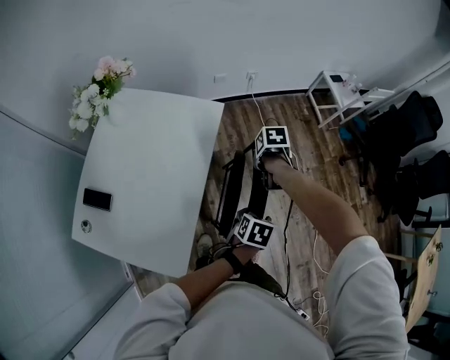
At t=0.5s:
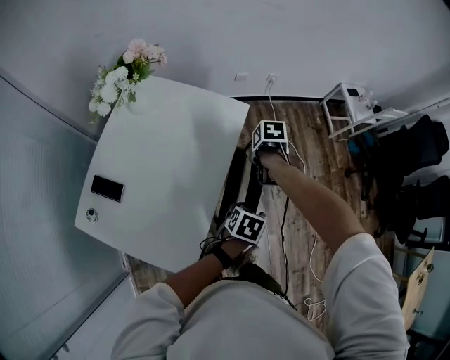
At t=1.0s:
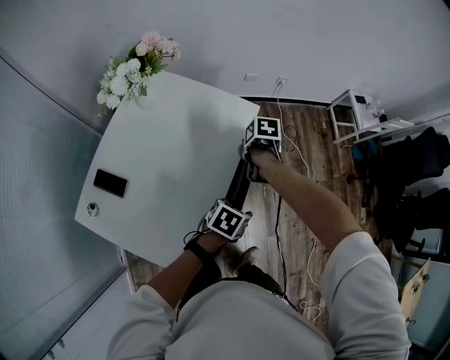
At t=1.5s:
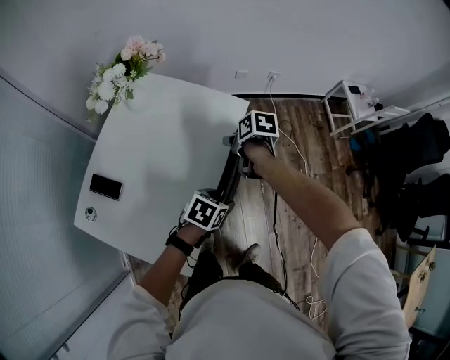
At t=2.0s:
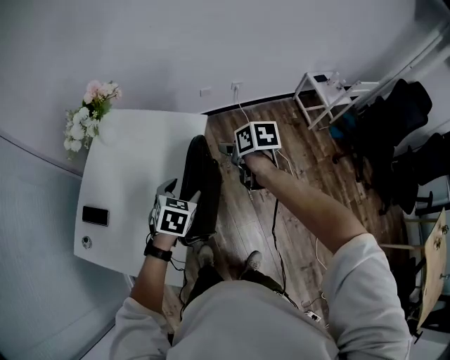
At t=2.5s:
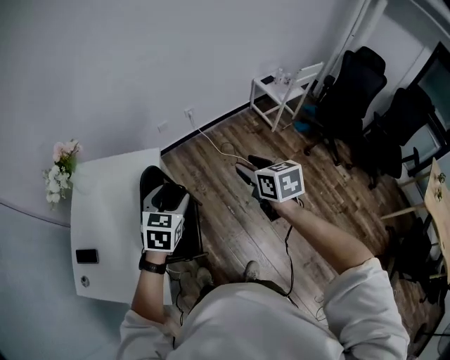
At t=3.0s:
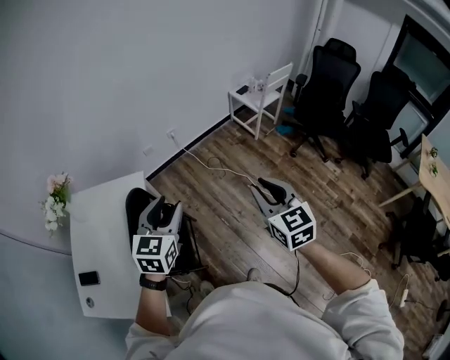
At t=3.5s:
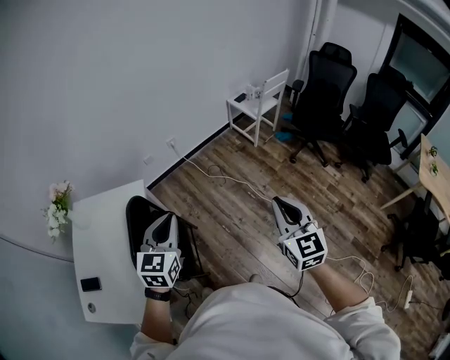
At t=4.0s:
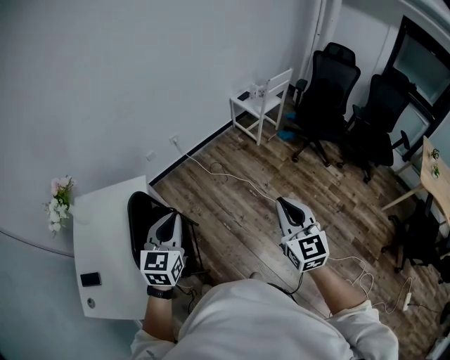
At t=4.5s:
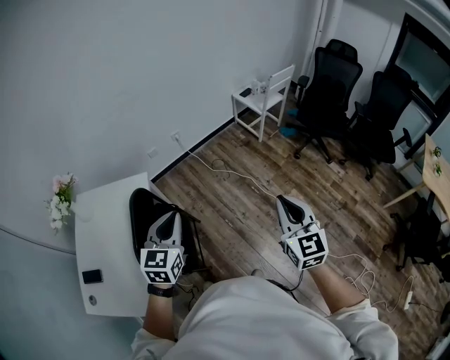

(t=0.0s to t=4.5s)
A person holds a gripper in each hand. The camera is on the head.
t=0.0s - t=2.0s: The left gripper ends up roughly 25 cm from where it was, and changes its angle by some 30 degrees, while the right gripper shifts about 10 cm upward, and swivels some 30 degrees.
t=2.0s - t=4.5s: The left gripper moves some 35 cm, points its fingers some 30 degrees further upward, and closes its fingers. Meanwhile the right gripper ends up some 50 cm from where it was, angles its fingers upward, by some 40 degrees, and closes its fingers.

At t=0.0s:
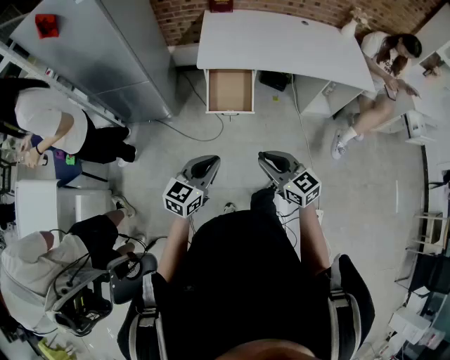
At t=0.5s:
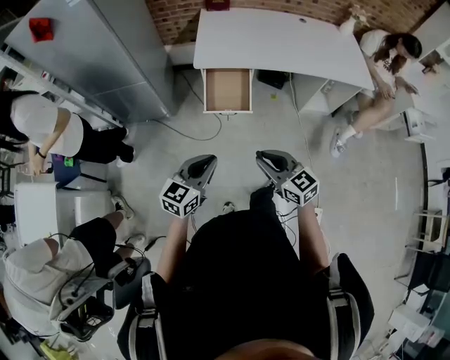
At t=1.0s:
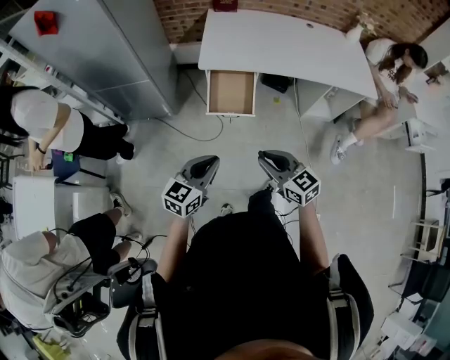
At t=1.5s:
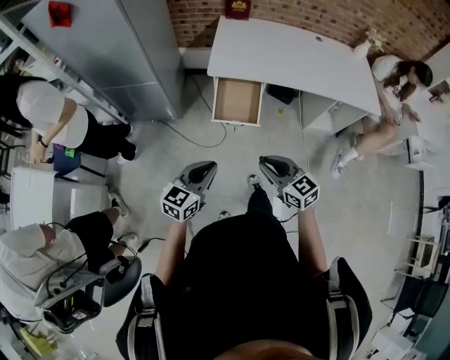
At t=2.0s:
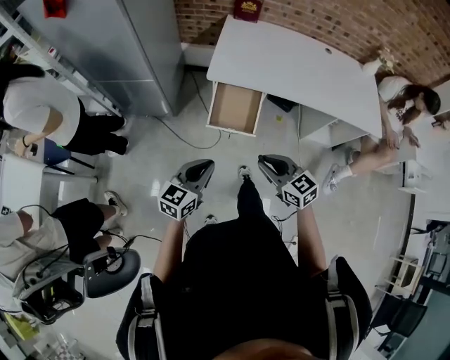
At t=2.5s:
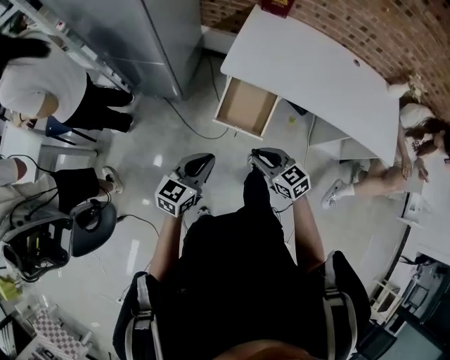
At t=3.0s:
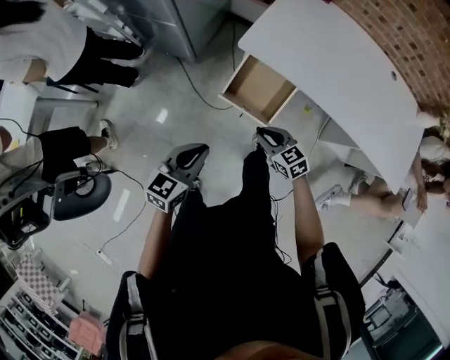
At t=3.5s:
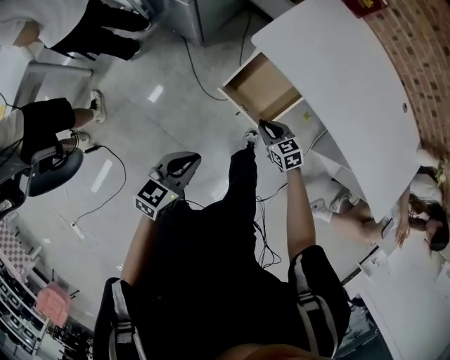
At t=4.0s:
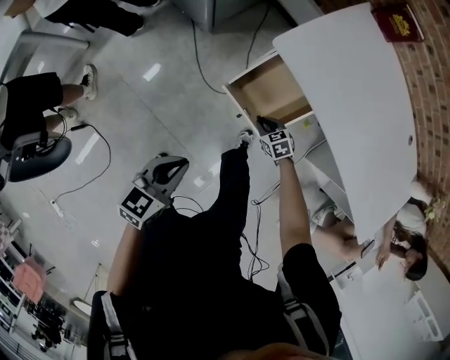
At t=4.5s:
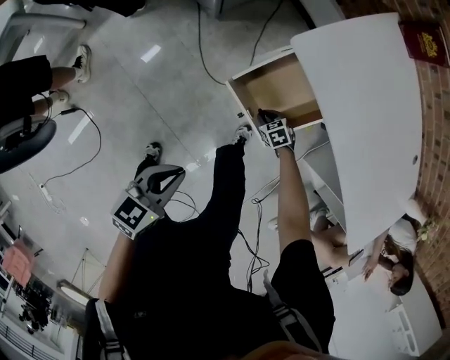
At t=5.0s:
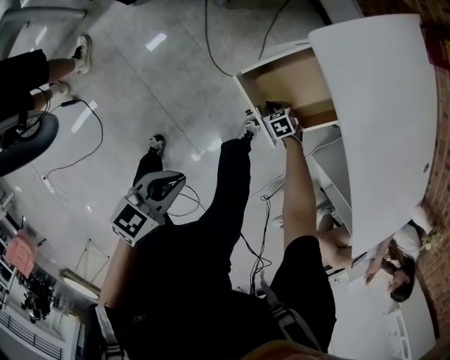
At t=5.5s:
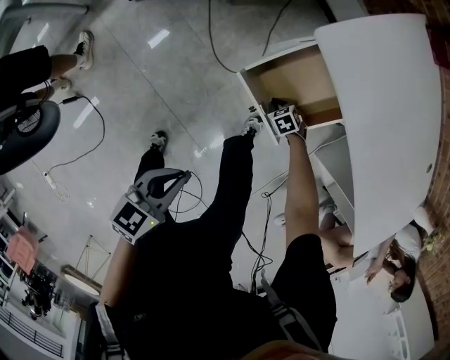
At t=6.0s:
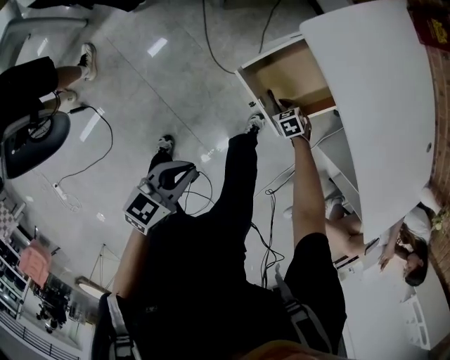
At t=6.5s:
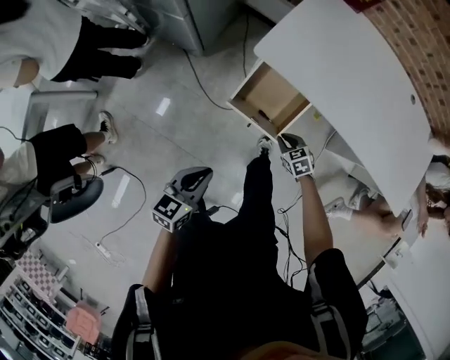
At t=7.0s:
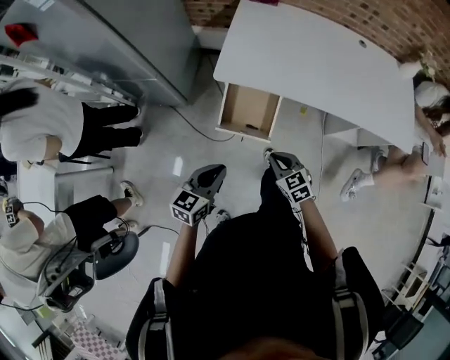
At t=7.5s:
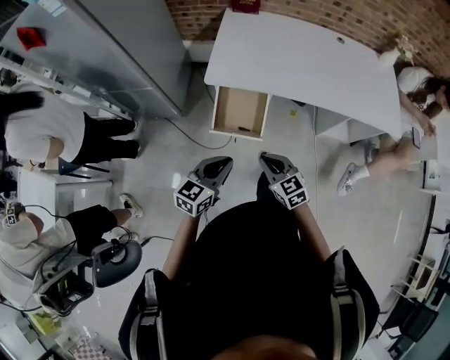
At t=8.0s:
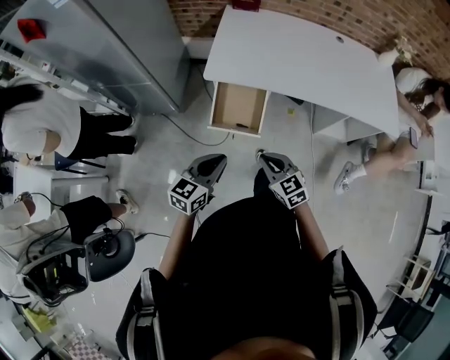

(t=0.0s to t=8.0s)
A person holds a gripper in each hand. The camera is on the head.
t=0.0s - t=2.0s: Both grippers travel together forward, approximately 10 cm.
t=2.0s - t=4.0s: The left gripper is displaced downward by about 15 cm, and turns by approximately 30 degrees. The right gripper travels downward by some 40 cm, and tips its fingers downward by about 40 degrees.
t=4.0s - t=6.0s: The right gripper moves downward, about 10 cm. Meanwhile the left gripper travels downward by roughly 5 cm.
t=6.0s - t=8.0s: The right gripper shifts some 40 cm upward, and points its fingers some 40 degrees further upward. Meanwhile the left gripper is displaced upward by about 15 cm, and turns by approximately 40 degrees.

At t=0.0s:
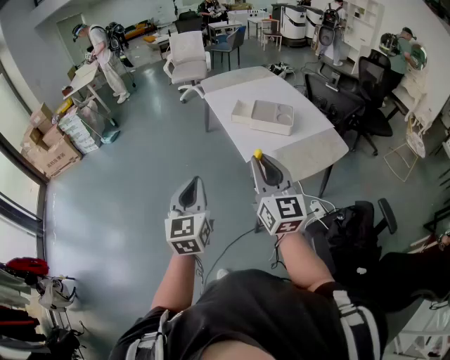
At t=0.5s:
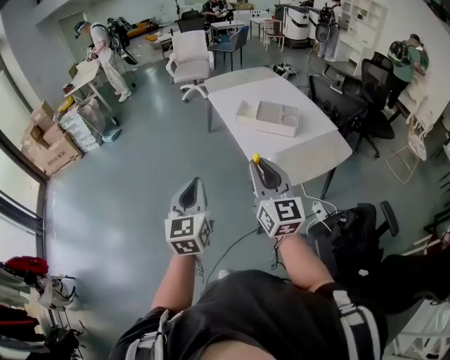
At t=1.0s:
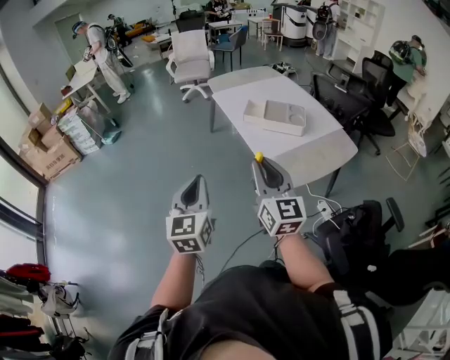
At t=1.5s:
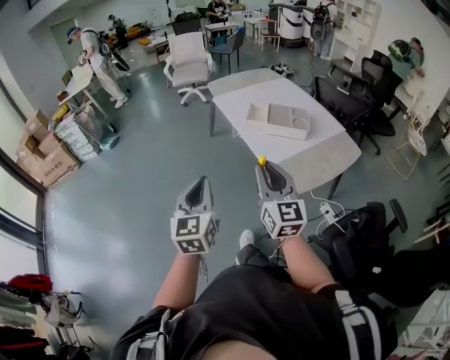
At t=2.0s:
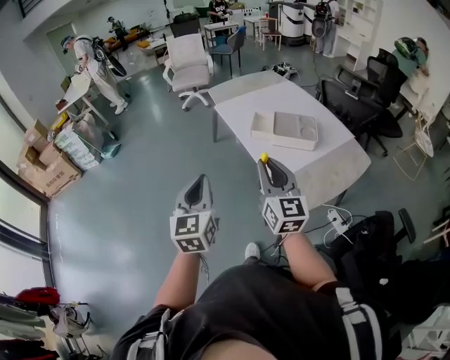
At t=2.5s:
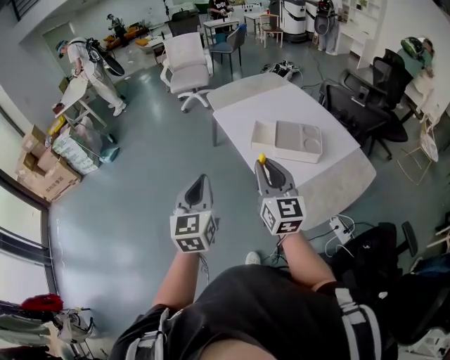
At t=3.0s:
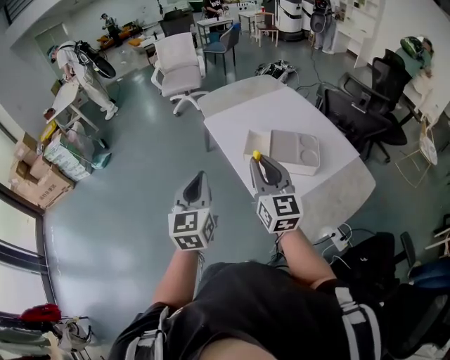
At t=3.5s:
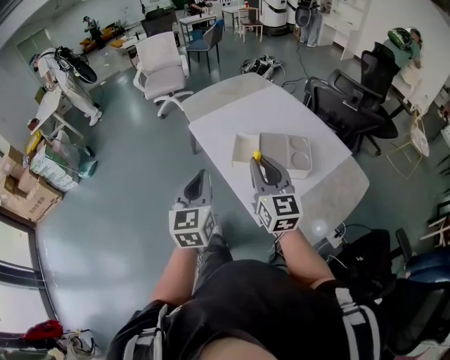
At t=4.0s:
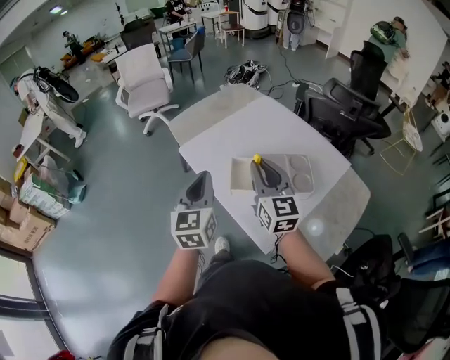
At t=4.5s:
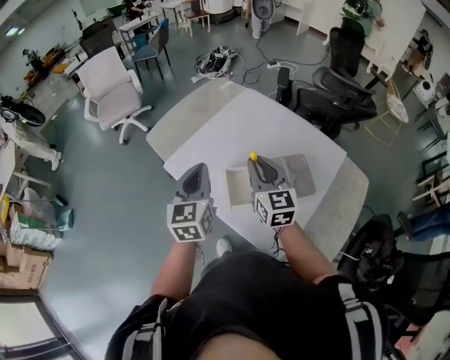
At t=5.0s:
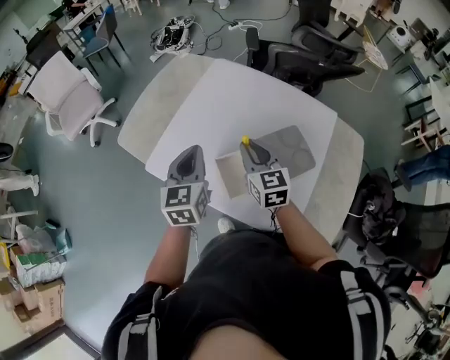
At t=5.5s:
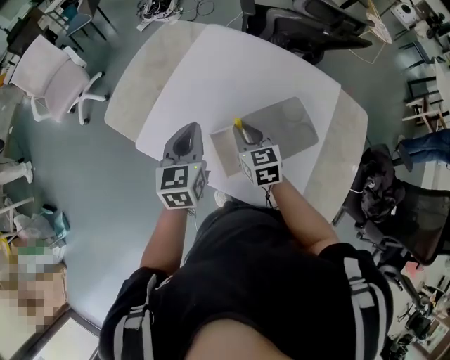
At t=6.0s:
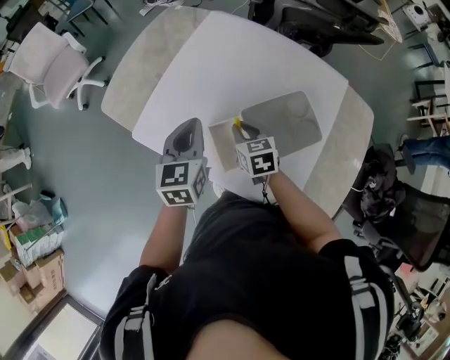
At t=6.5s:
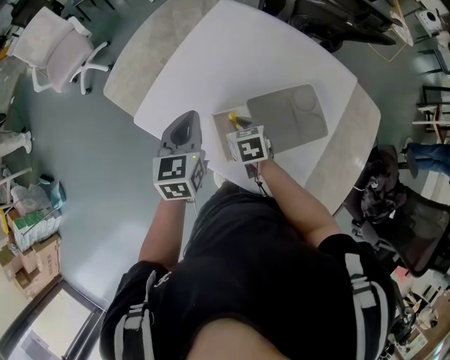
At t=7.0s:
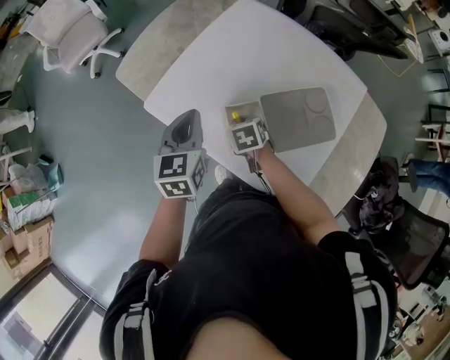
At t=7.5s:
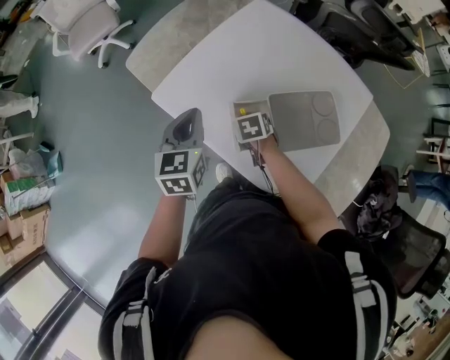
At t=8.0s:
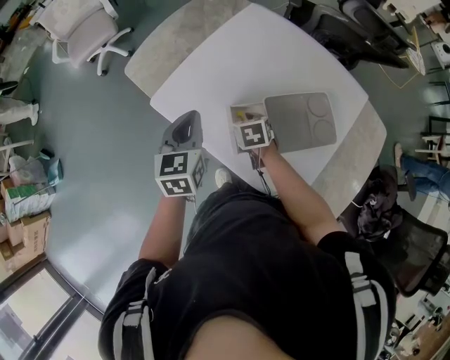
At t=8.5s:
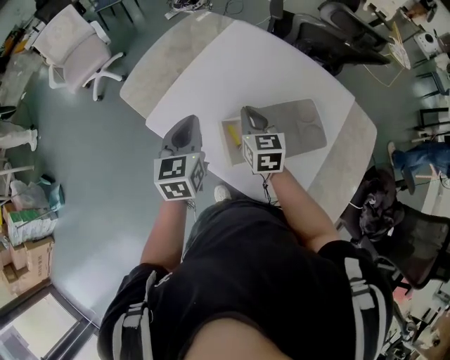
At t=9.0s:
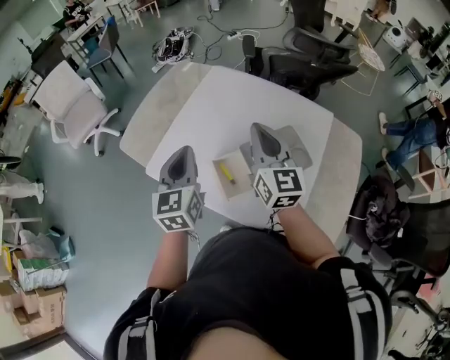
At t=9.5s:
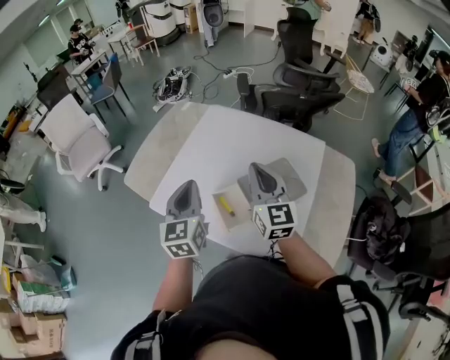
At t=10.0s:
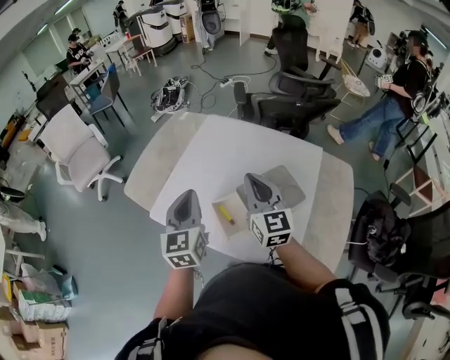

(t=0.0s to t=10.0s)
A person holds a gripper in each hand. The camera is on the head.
t=0.0s - t=2.0s: Both grippers travel together forward and to the left, some 20 cm.
t=2.0s - t=4.0s: Both grippers move forward, approximately 40 cm.
t=4.0s - t=6.0s: The left gripper heads forward and downward, covering approximately 30 cm, and rotates some 30 degrees. Meanwhile the right gripper is displaced downward and forward by roughly 30 cm, and tilts its fingers approximately 40 degrees downward.
t=6.0s - t=8.0s: The right gripper moves downward and to the left, roughly 10 cm; the left gripper goes approximately 10 cm to the left.
t=8.0s - t=10.0s: The left gripper is displaced upward and to the right by about 10 cm; the right gripper moves upward, about 30 cm, and tips its fingers upward by about 60 degrees.

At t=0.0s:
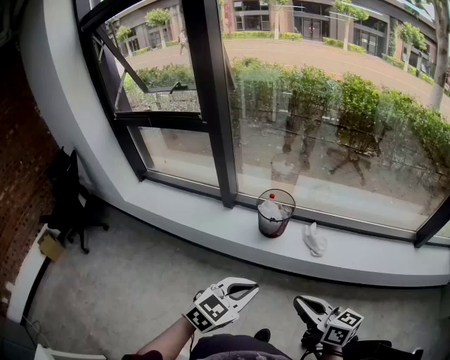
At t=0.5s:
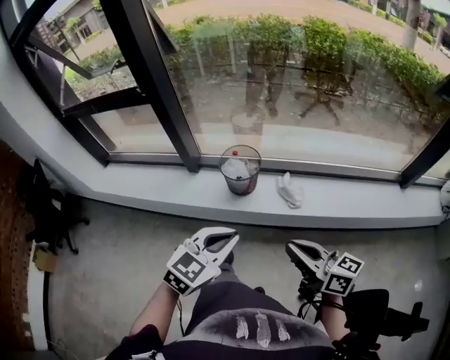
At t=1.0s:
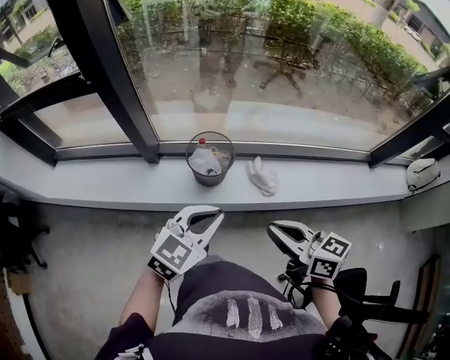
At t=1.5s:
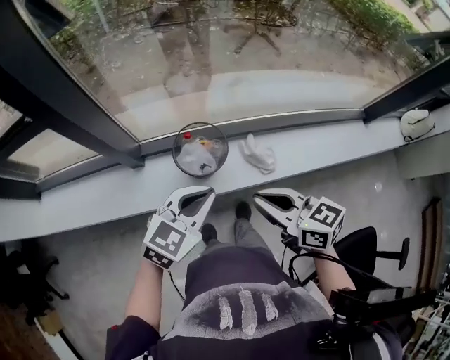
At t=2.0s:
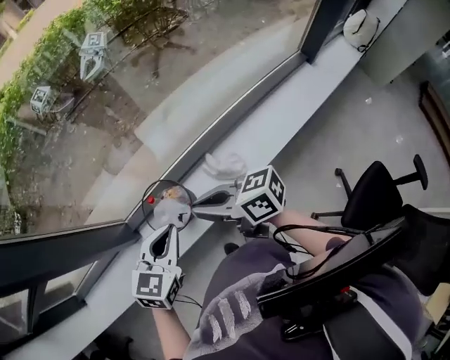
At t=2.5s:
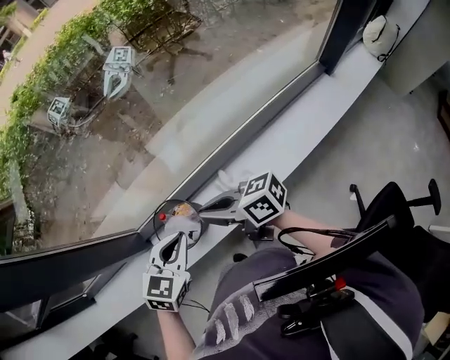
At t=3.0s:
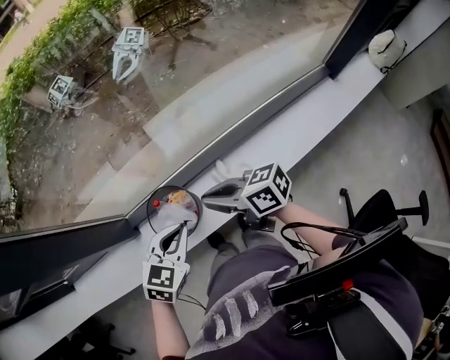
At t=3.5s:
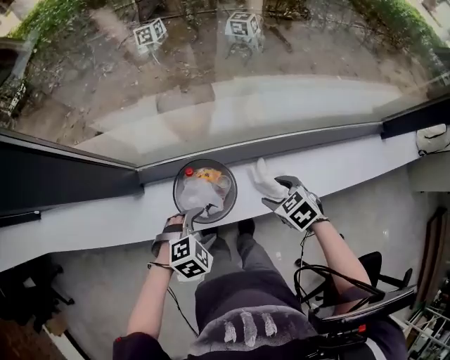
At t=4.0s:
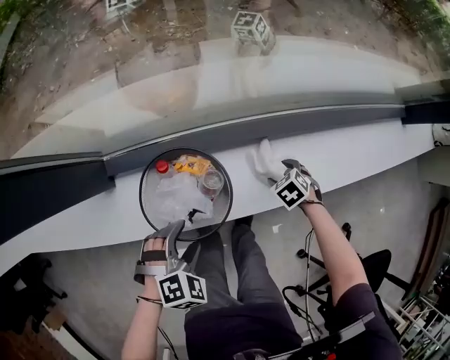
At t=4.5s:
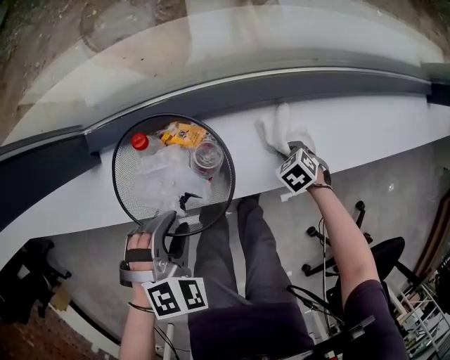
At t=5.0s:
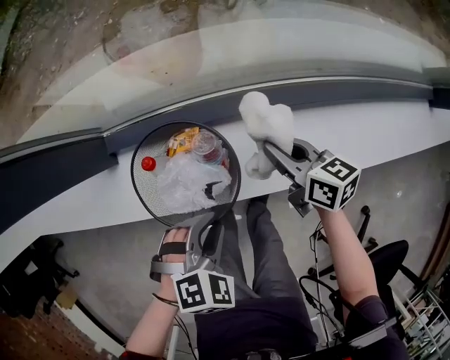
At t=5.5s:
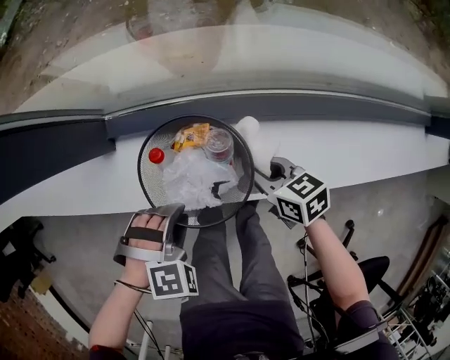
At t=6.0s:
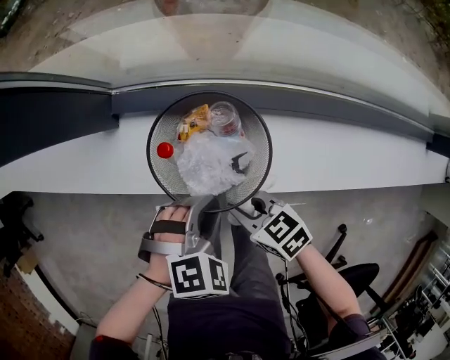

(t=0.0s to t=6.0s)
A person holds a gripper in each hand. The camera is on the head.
t=0.0s - t=2.0s: Both grippers move forward, roughly 40 cm.
t=2.0s - t=4.0s: The right gripper moves downward, roughly 50 cm, tilts its fingers some 70 degrees downward, and opens up; the left gripper travels downward by roughly 30 cm, angles its fingers downward, by about 30 degrees, and opens up.
t=4.0s - t=6.0s: The left gripper closes its fingers, while the right gripper goes up and down, about 20 cm each way, reversing 2 times, angles its fingers upward, by some 40 degrees, and closes up.
